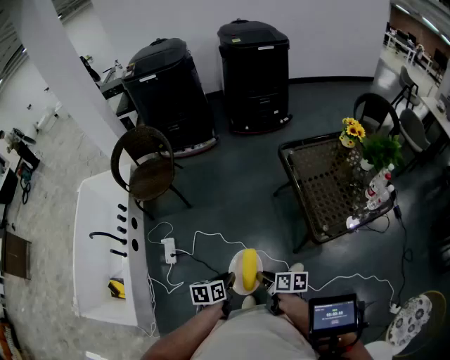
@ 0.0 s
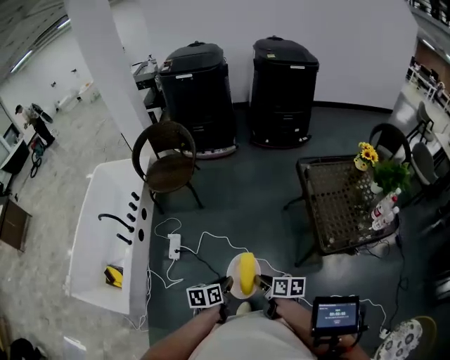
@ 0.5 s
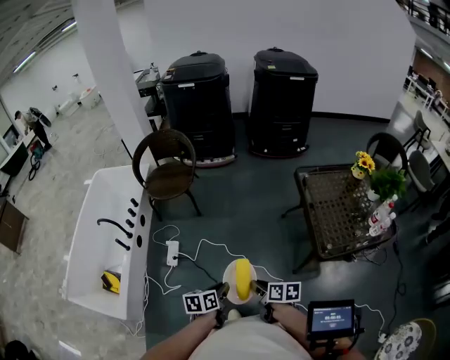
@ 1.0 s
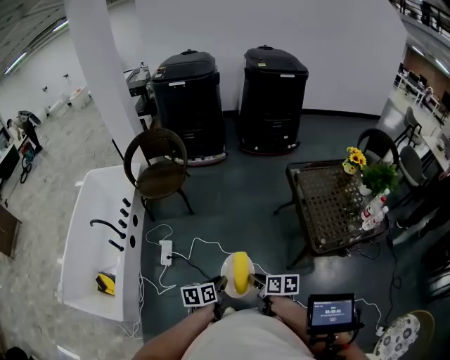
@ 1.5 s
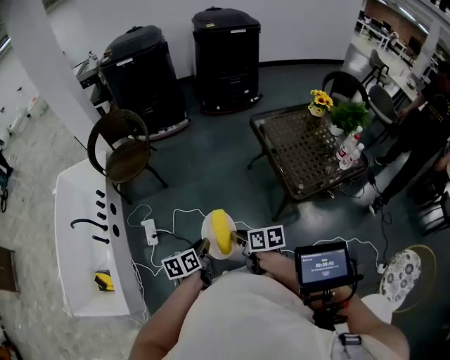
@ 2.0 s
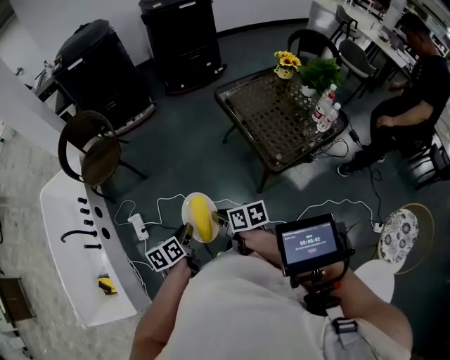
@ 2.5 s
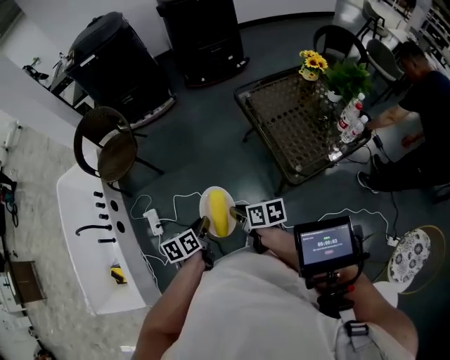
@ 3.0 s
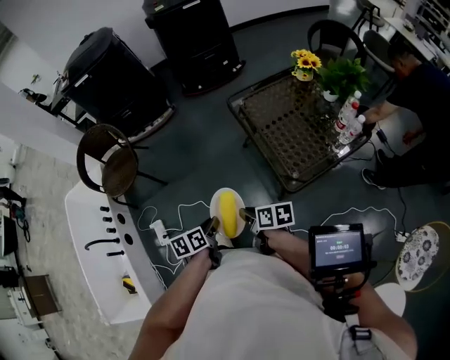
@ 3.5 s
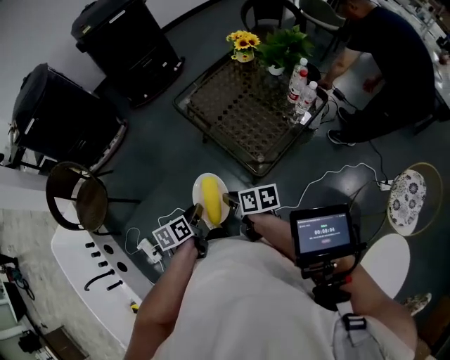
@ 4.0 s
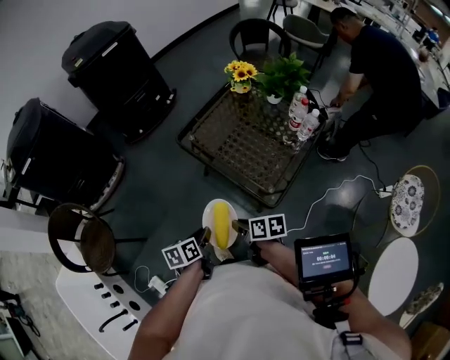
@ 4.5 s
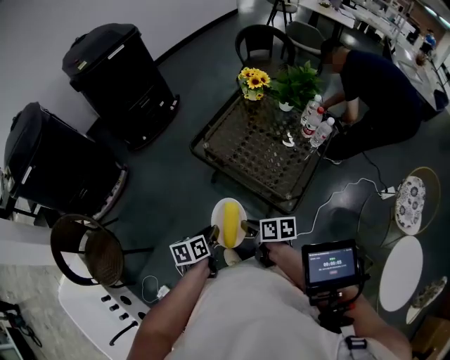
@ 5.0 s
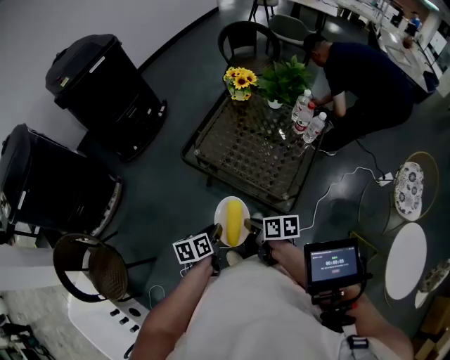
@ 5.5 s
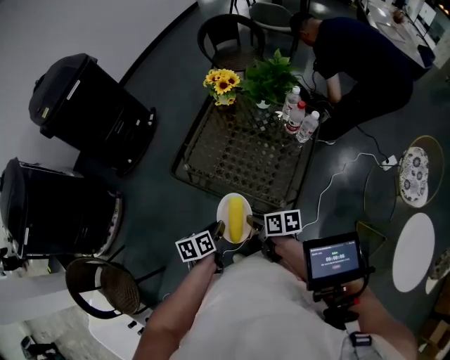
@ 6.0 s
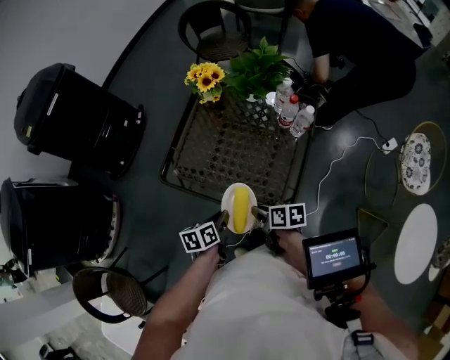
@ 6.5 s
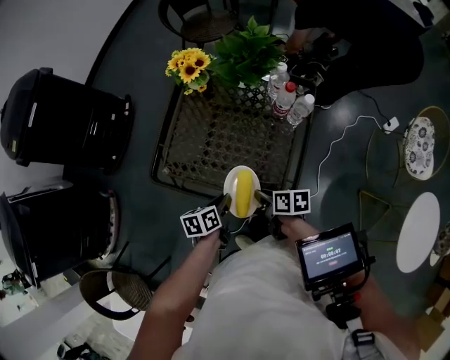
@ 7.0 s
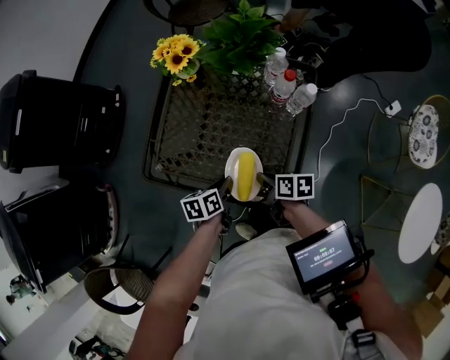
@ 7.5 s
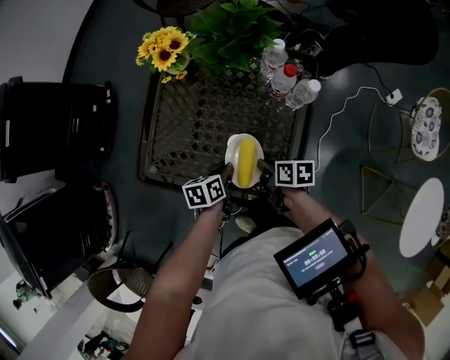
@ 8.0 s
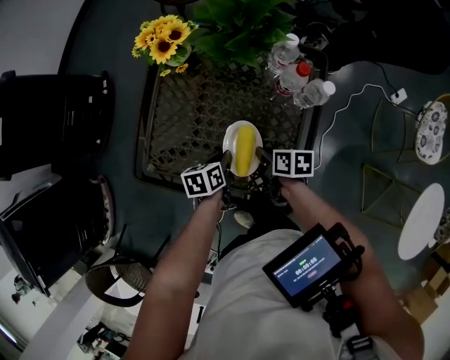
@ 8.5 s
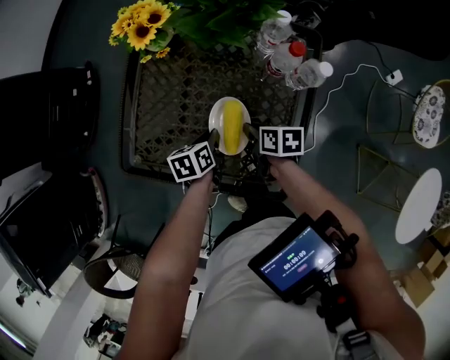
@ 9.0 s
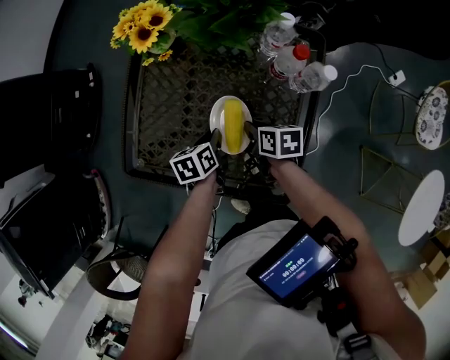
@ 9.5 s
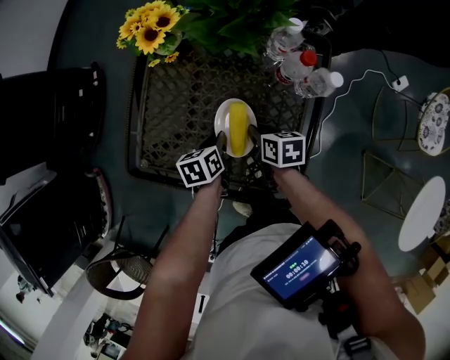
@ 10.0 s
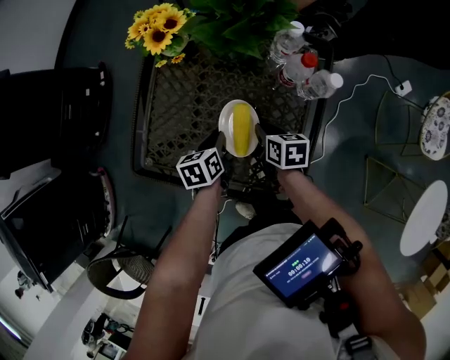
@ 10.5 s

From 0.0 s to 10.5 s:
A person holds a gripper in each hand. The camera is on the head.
From 0.0 s to 2.0 s: The left gripper goes roughly 5 cm to the left; the right gripper heads to the left and upward, covering approximately 10 cm.
From 2.0 s to 4.0 s: The two grippers go some 25 cm to the right and forward. The left gripper changes its angle by roughly 20 degrees, while the right gripper swivels roughly 20 degrees.
From 4.0 s to 6.5 s: The right gripper changes place by about 20 cm, and rotates roughly 30 degrees. Meanwhile the left gripper moves some 30 cm, and rotates roughly 30 degrees.
From 6.5 s to 8.5 s: The two grippers go roughly 20 cm forward, downward and to the right.
From 8.5 s to 10.5 s: The right gripper ends up about 5 cm from where it was.

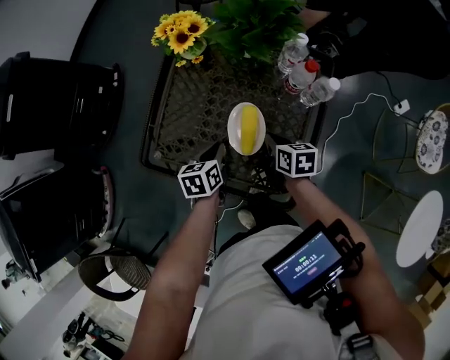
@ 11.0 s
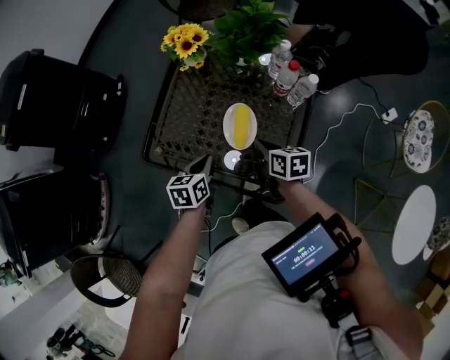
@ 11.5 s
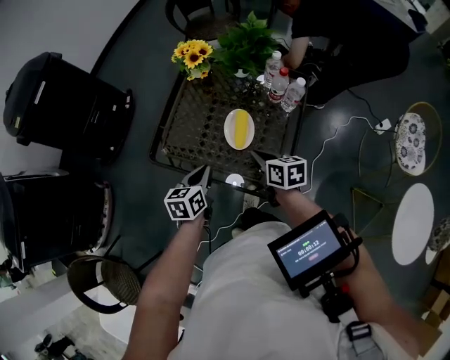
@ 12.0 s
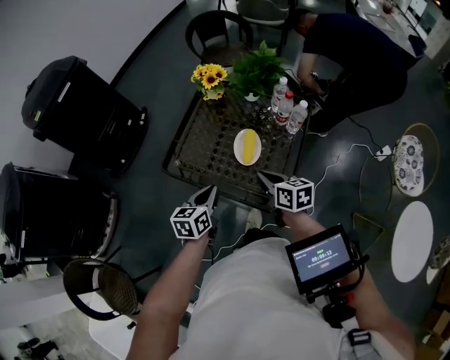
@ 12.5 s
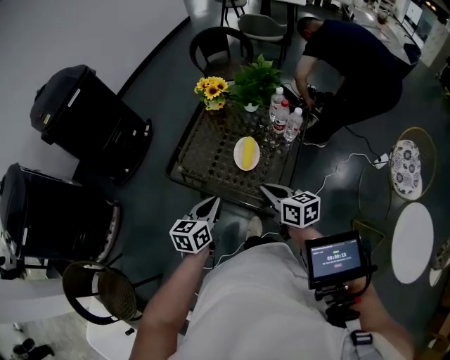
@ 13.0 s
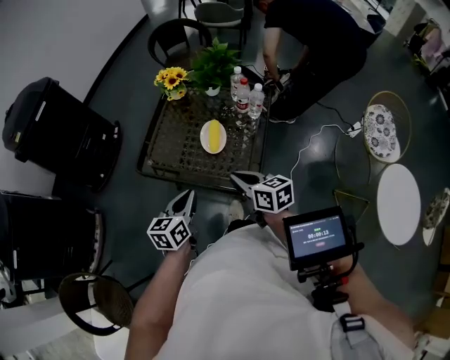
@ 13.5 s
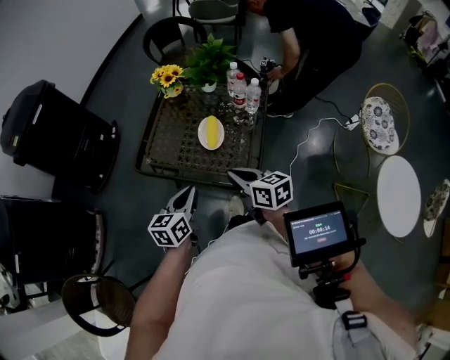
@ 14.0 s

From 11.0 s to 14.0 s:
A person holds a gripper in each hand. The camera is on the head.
From 11.0 s to 12.5 s: The right gripper heads upward and backward, covering approximately 25 cm, and swivels roughly 20 degrees; the left gripper travels backward and upward by roughly 25 cm, and turns by roughly 20 degrees.
From 12.5 s to 14.0 s: Both grippers travel together backward, some 10 cm.

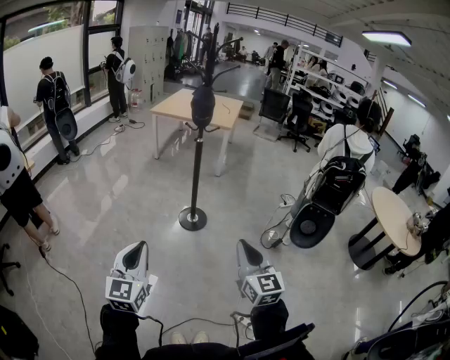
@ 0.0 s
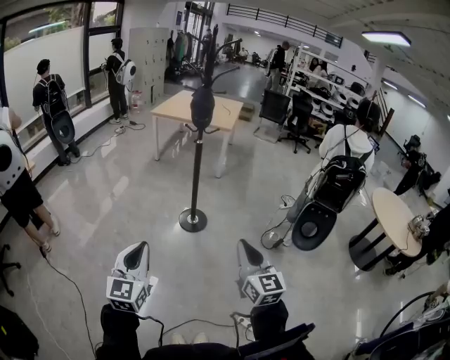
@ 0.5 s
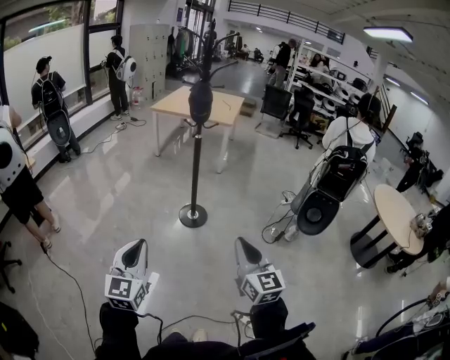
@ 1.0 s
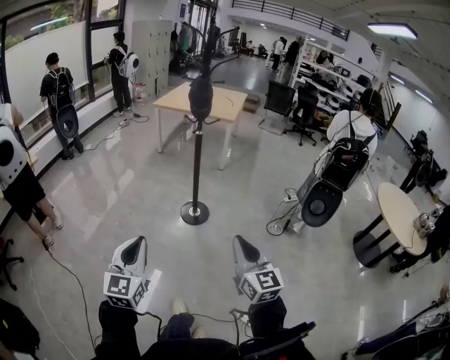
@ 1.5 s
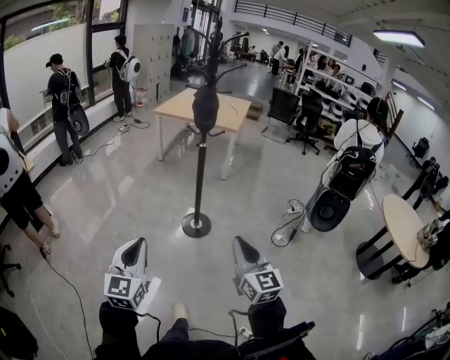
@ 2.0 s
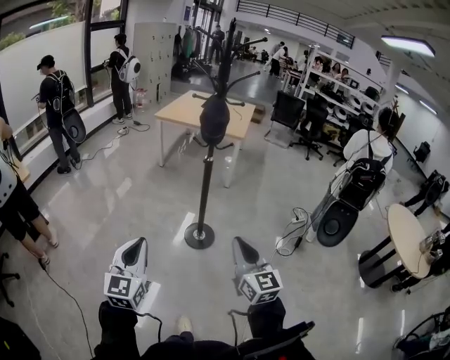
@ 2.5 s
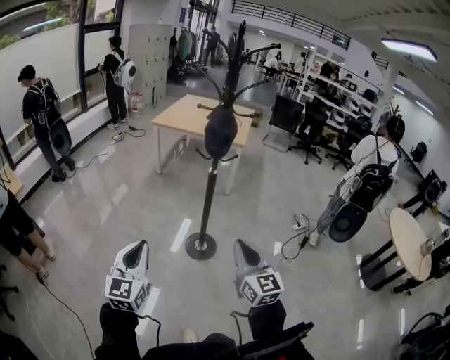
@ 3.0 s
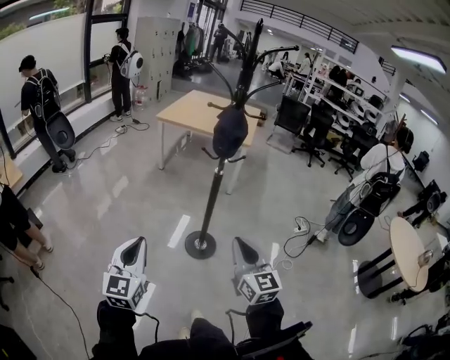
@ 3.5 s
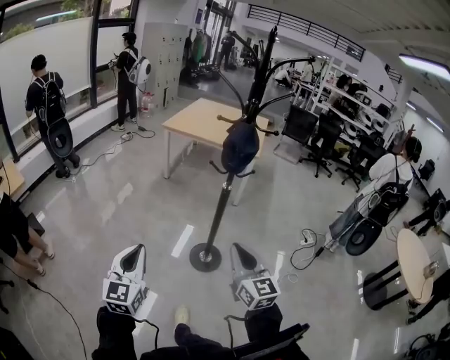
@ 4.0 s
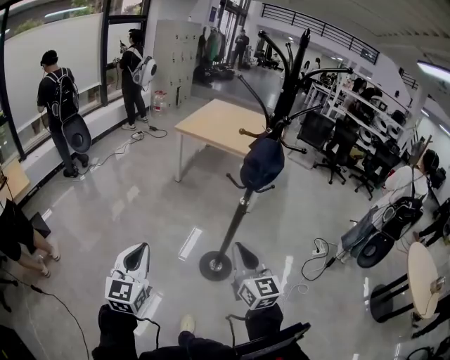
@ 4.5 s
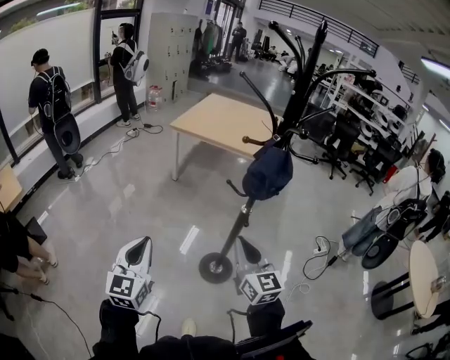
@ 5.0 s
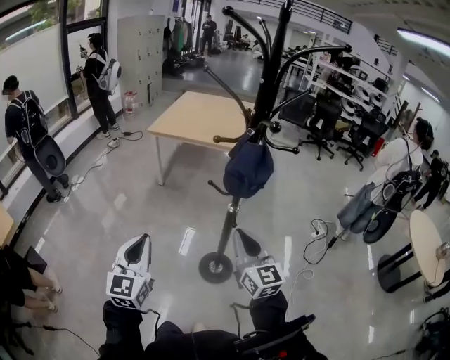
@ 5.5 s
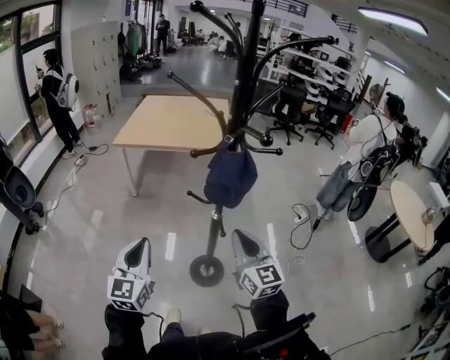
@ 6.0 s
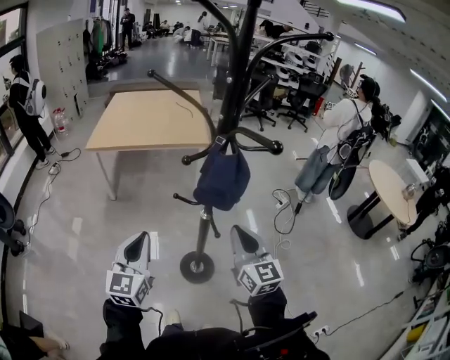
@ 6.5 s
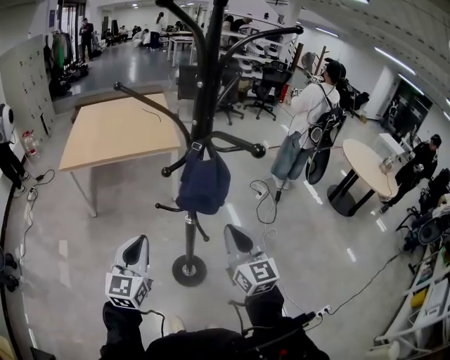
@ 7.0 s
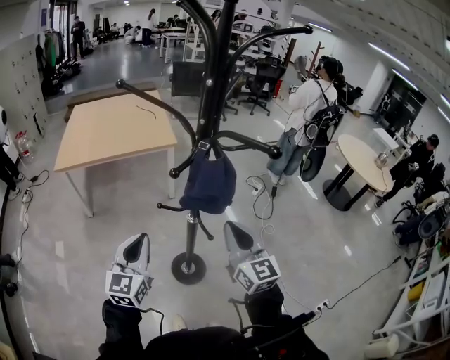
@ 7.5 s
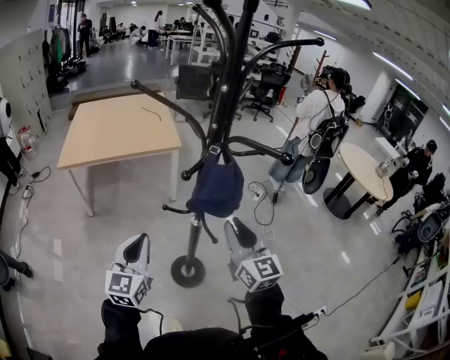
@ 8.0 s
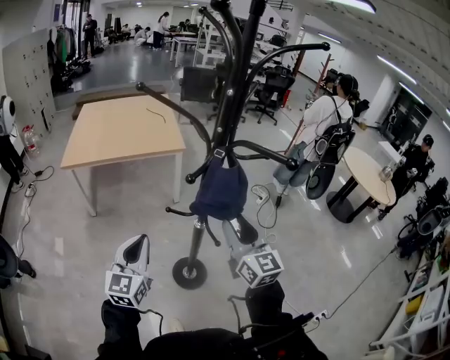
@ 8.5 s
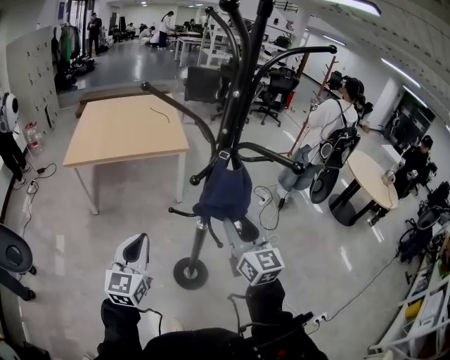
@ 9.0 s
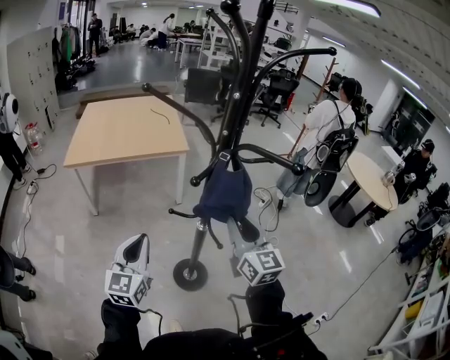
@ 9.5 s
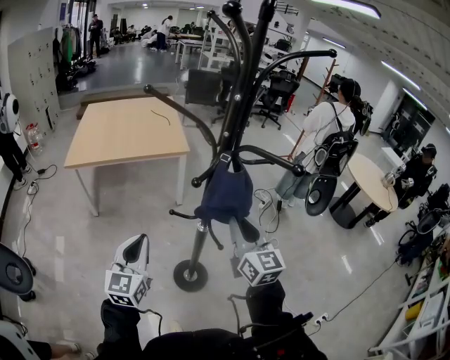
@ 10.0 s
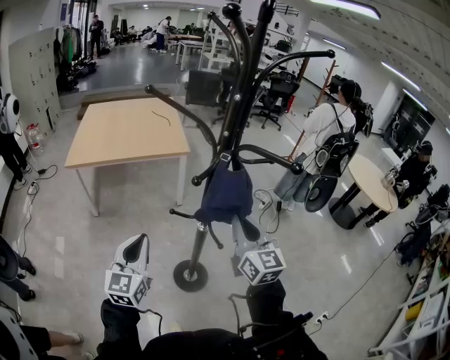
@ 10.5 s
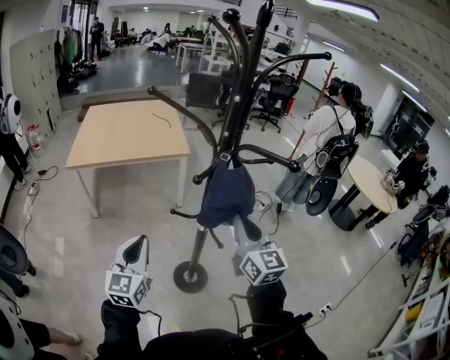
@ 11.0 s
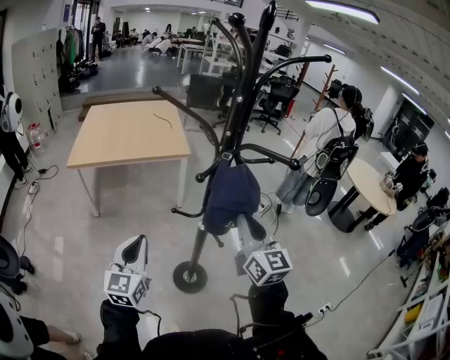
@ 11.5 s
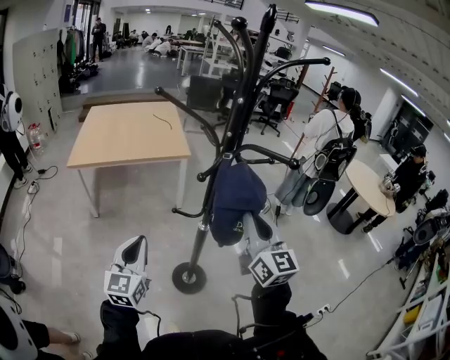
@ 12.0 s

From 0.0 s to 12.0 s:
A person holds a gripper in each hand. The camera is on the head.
From 0.0 s to 2.0 s: Both grippers move forward, some 10 cm.
From 2.0 s to 4.0 s: The two grippers go about 30 cm forward.
From 4.0 s to 6.0 s: The grippers both shift forward by approximately 25 cm.
From 6.0 s to 8.0 s: The left gripper goes approximately 10 cm forward, and turns by some 20 degrees. Meanwhile the right gripper ends up roughly 5 cm from where it was, and rotates roughly 20 degrees.
From 8.0 s to 10.0 s: The grippers move only a little.
From 10.0 s to 12.0 s: The right gripper travels upward by some 5 cm.

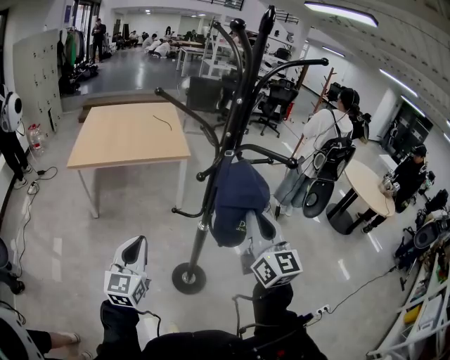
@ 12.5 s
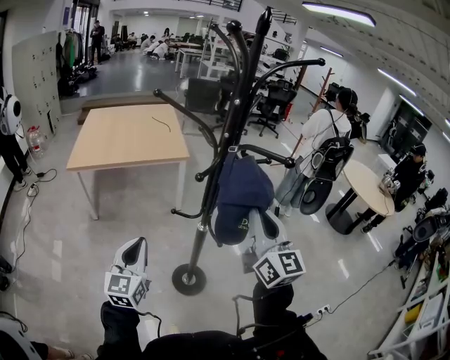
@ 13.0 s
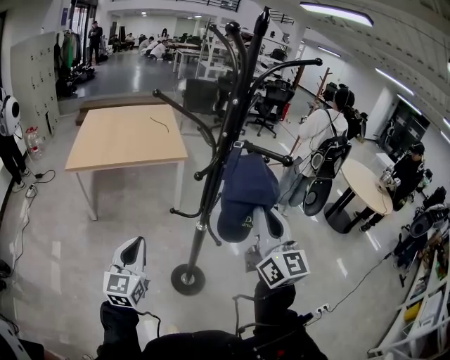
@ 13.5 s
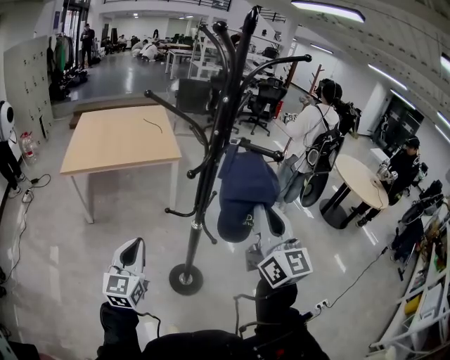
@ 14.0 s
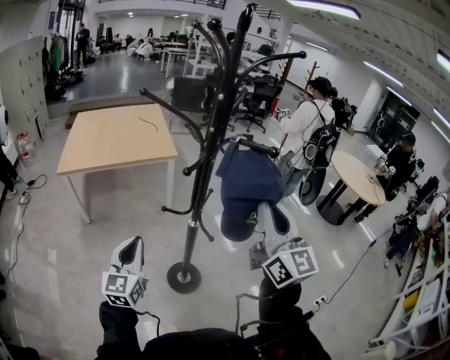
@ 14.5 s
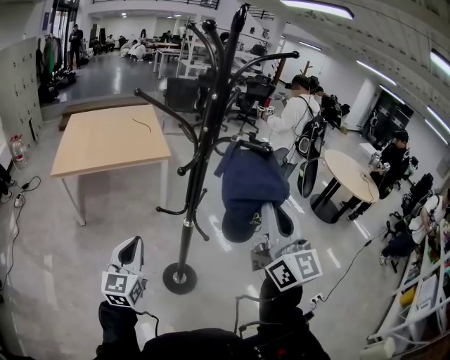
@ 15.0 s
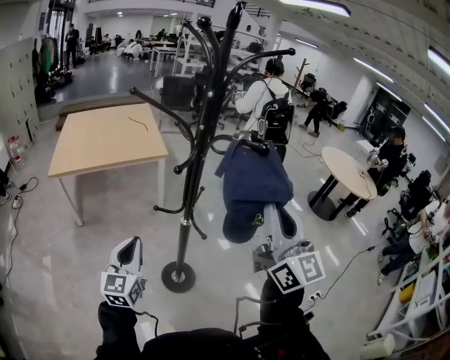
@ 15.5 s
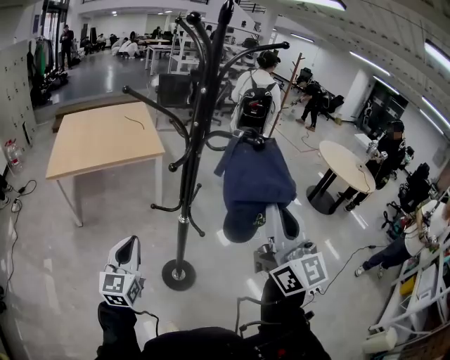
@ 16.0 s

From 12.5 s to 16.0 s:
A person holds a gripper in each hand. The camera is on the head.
From 12.5 s to 14.5 s: The right gripper is displaced upward and backward by some 10 cm.
From 14.5 s to 16.0 s: The right gripper shifts some 5 cm backward.
